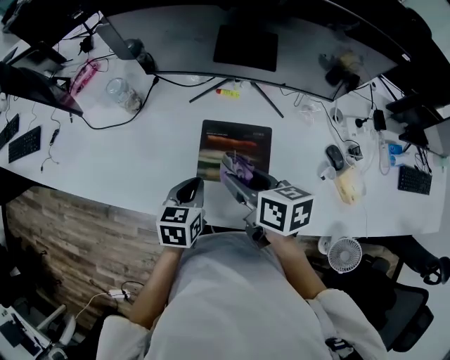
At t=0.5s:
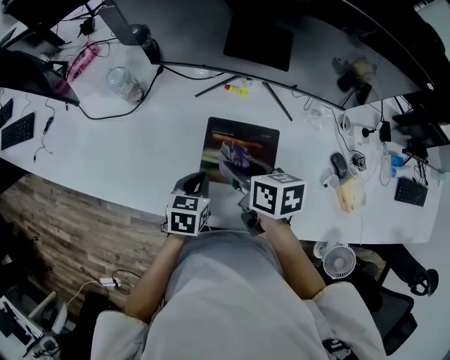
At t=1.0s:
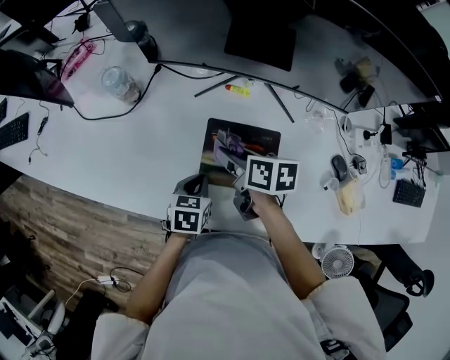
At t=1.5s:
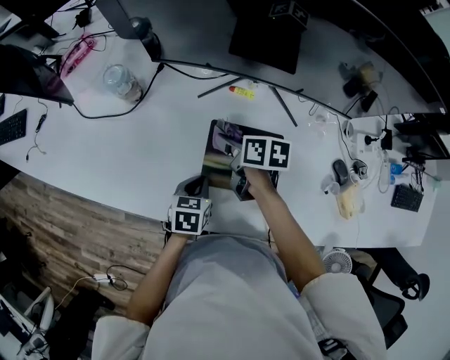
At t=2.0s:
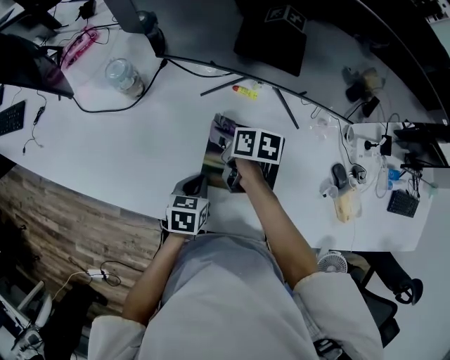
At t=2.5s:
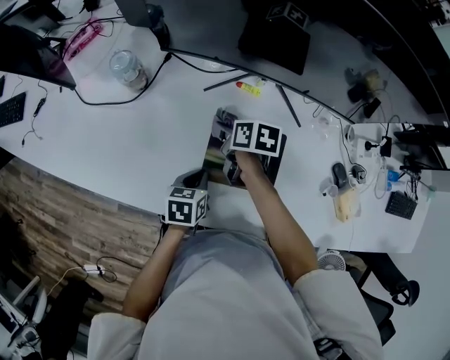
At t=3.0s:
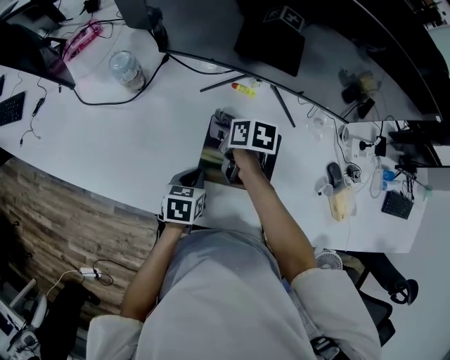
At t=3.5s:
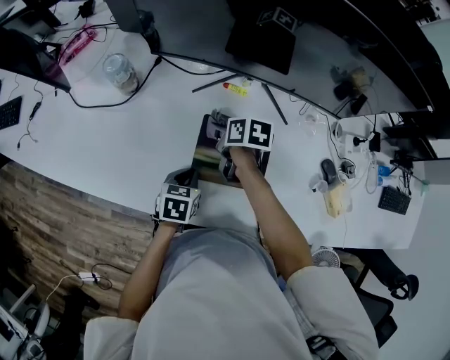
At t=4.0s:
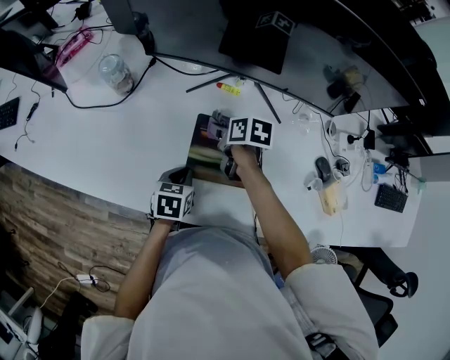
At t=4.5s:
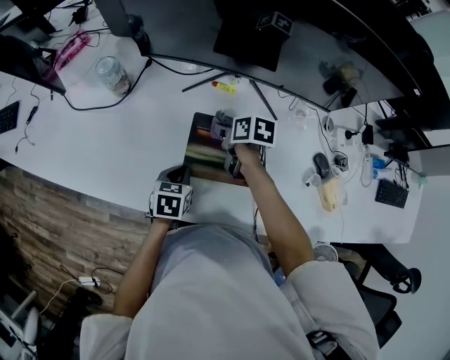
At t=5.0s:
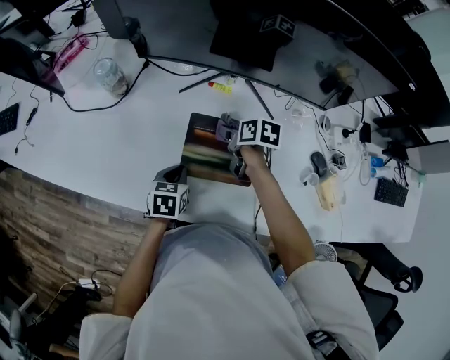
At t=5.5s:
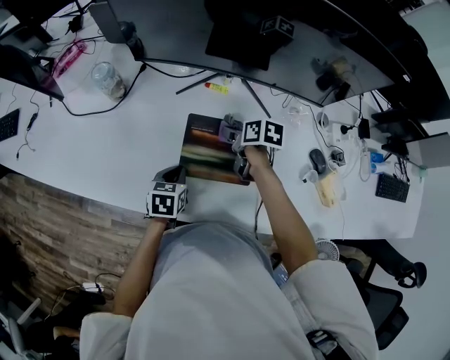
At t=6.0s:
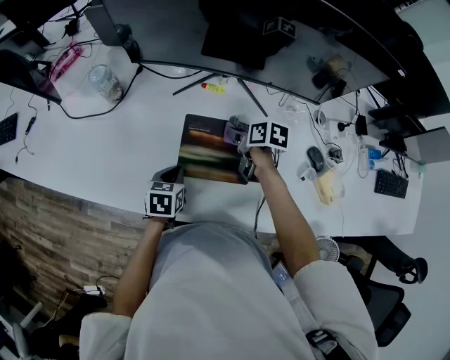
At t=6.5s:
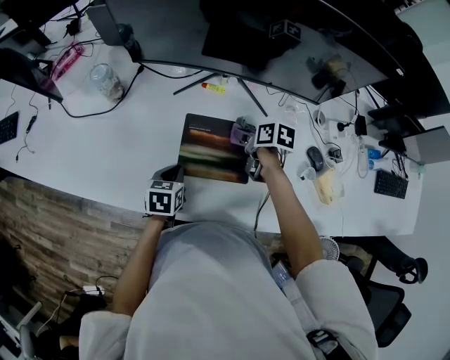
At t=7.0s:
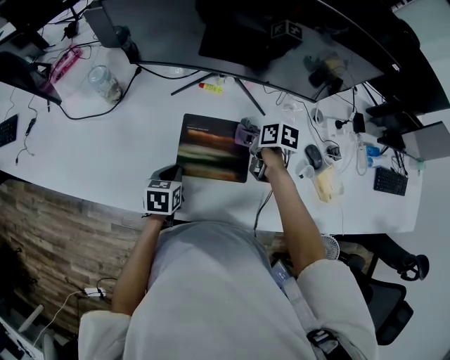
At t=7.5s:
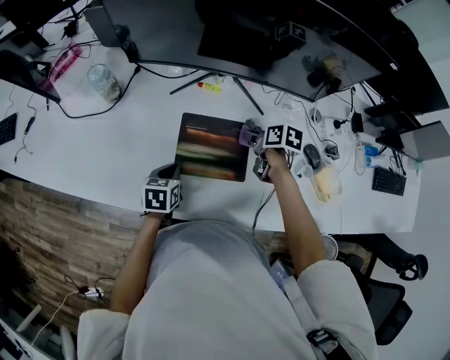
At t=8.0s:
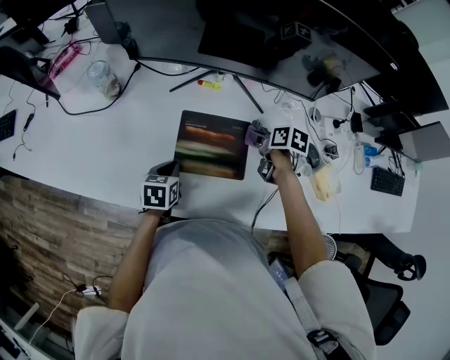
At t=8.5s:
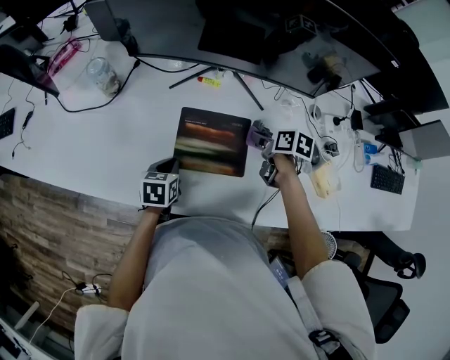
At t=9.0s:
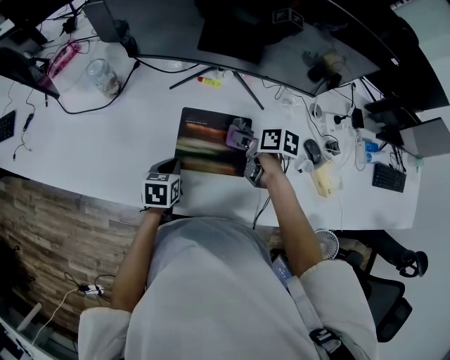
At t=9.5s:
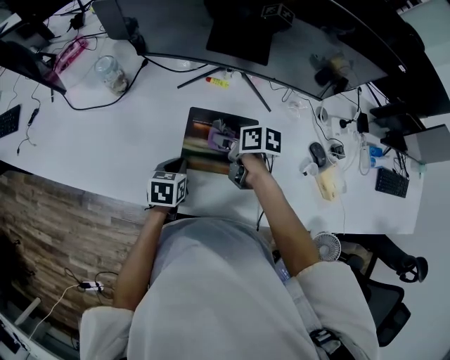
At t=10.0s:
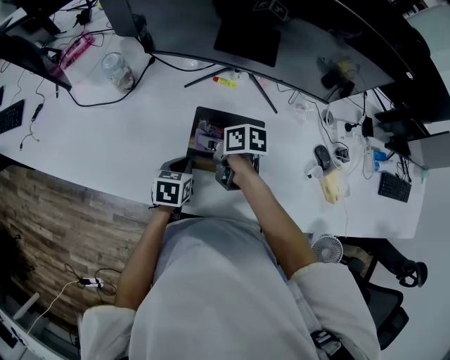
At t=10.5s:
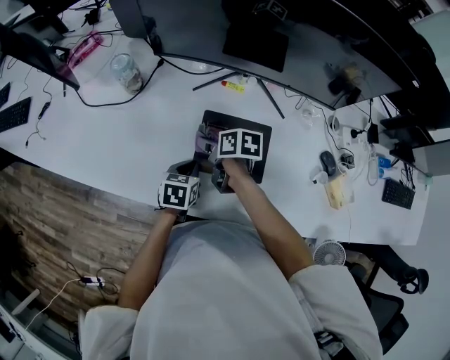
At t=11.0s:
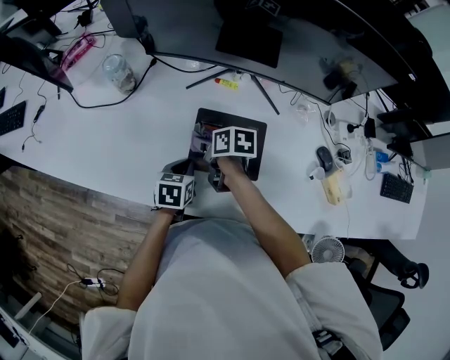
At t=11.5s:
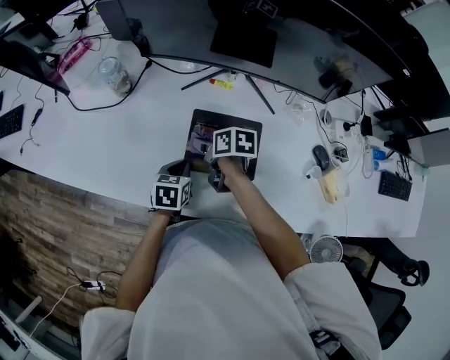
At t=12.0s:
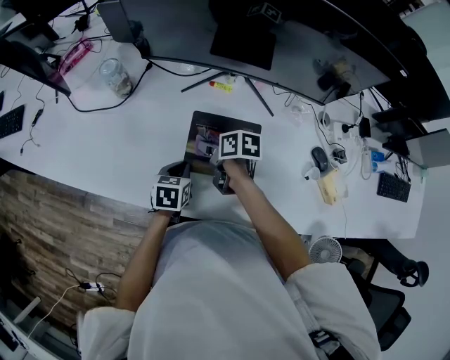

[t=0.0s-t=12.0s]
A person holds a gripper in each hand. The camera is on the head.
t=0.0s to t=2.0s: The right gripper goes some 20 cm downward and forward, while the left gripper goes approximately 10 cm downward.
t=2.0s to t=4.0s: The grippers make only small movements.
t=4.0s to t=6.0s: The right gripper heads to the right, covering approximately 10 cm.
t=6.0s to t=8.0s: The right gripper goes approximately 10 cm to the right.
t=8.0s to t=10.0s: The right gripper shifts approximately 20 cm to the left, and swivels roughly 20 degrees.
t=10.0s to t=12.0s: The grippers stay close to where they were, moving slightly.

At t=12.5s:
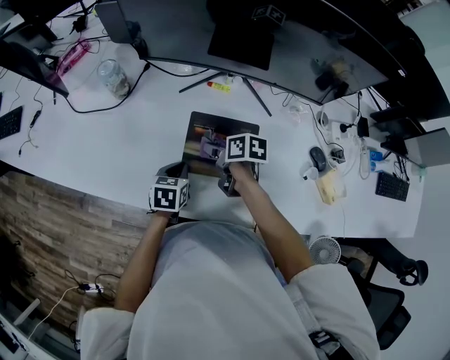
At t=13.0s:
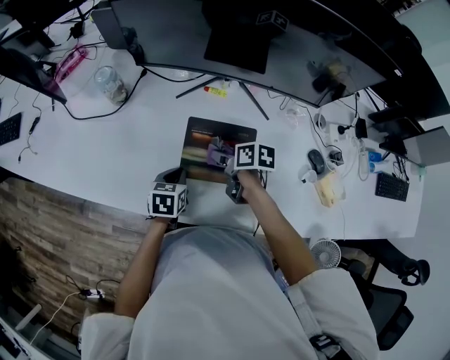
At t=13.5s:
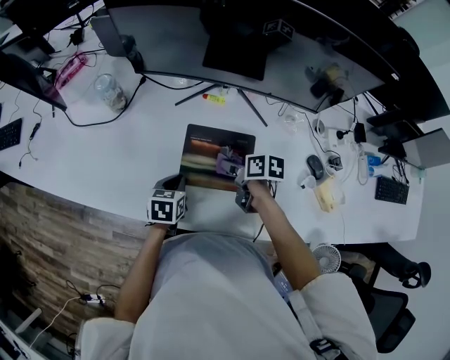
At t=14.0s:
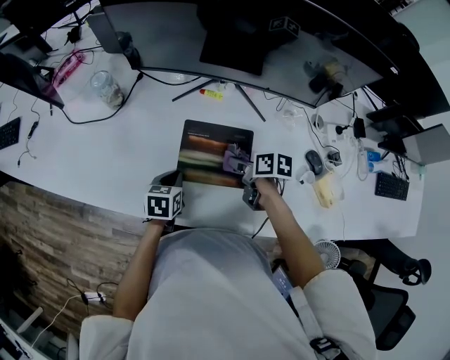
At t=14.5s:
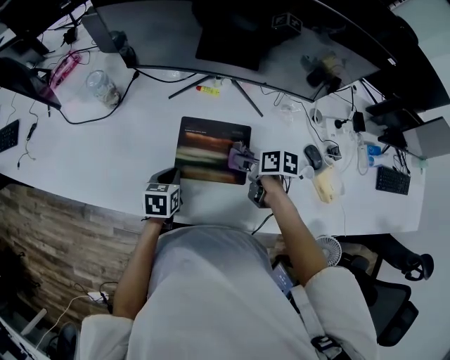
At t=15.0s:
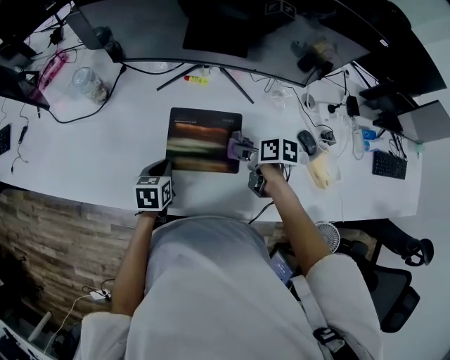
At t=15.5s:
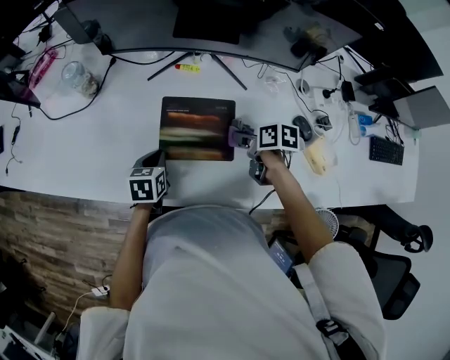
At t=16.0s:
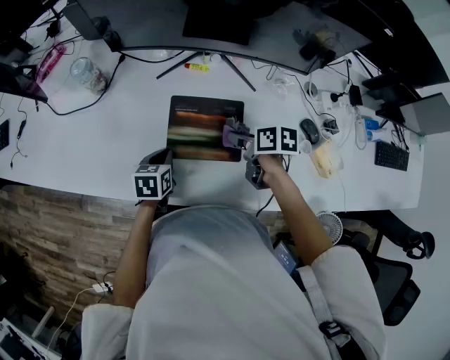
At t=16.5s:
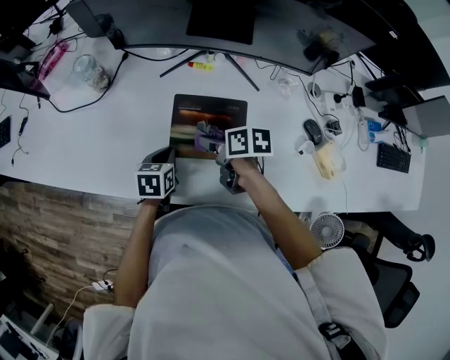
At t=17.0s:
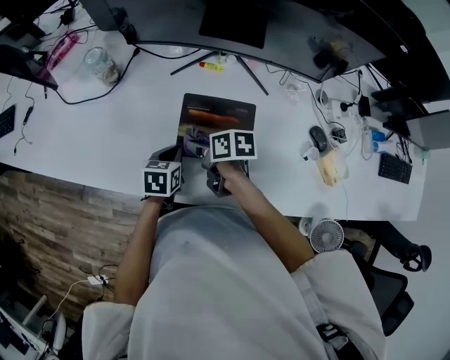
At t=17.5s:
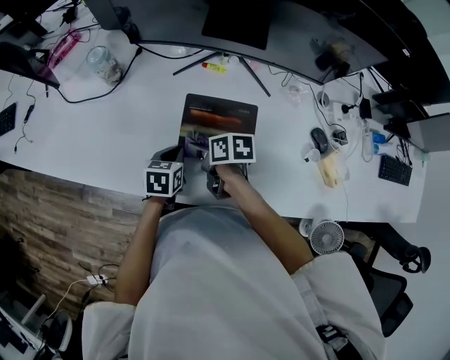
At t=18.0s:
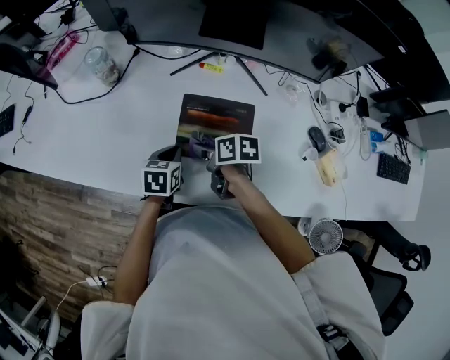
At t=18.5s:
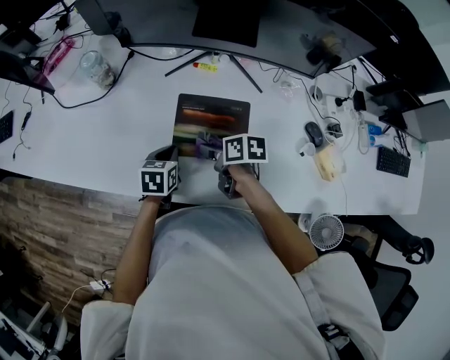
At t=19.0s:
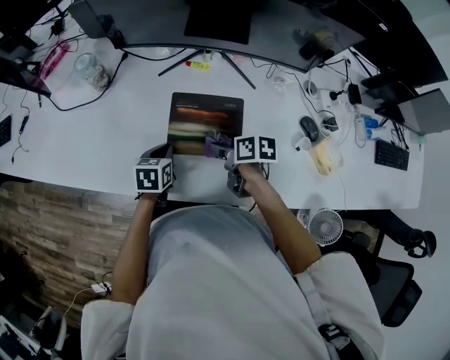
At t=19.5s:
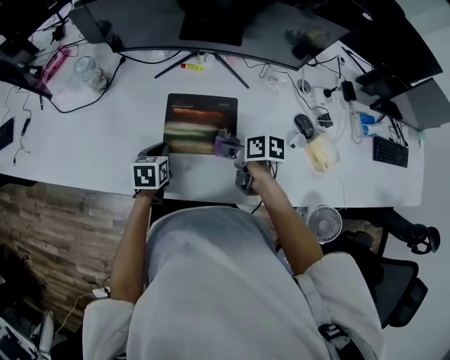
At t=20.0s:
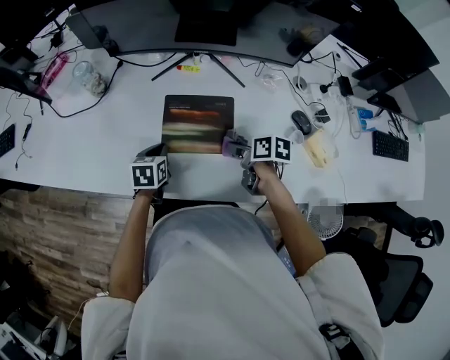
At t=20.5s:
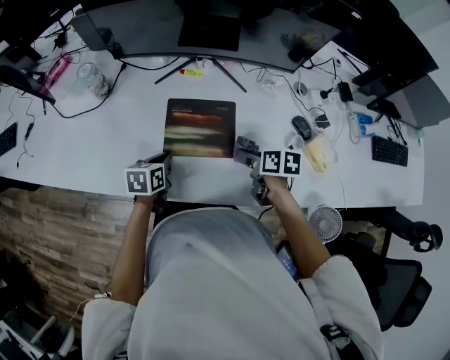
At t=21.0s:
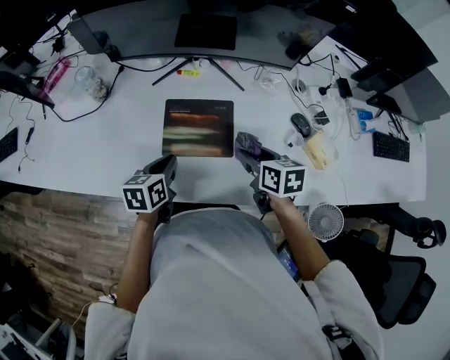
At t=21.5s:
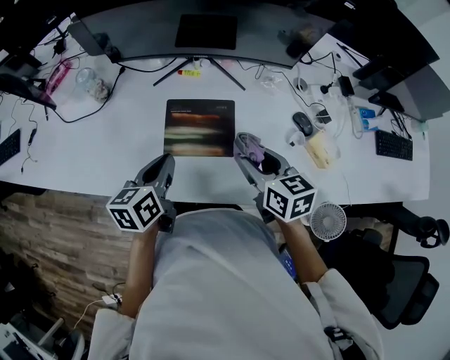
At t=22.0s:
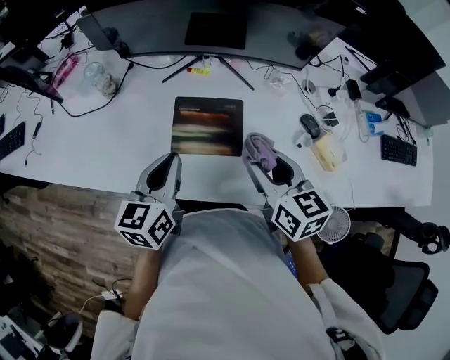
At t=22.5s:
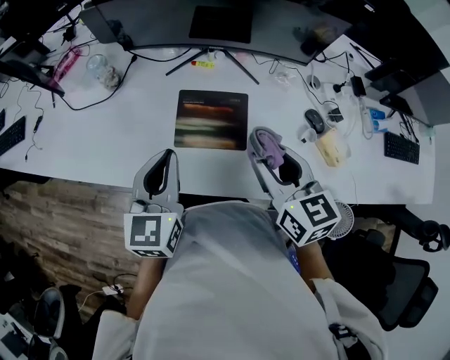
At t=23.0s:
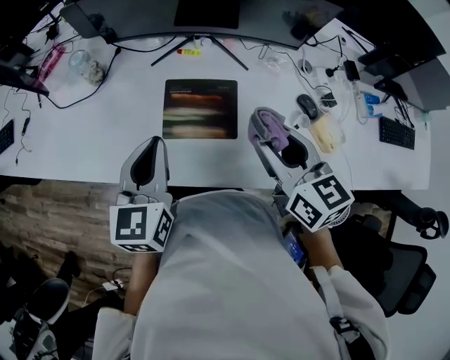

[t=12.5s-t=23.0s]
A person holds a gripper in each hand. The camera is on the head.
t=12.5s to t=14.5s: The right gripper heads to the right and backward, covering some 10 cm.
t=14.5s to t=16.5s: The right gripper moves to the left, roughly 10 cm.
t=16.5s to t=19.0s: The right gripper moves some 5 cm to the left and comes back.
t=19.0s to t=21.0s: The right gripper moves to the right and upward, some 15 cm, and rotates some 30 degrees; the left gripper goes some 10 cm upward.
t=21.0s to t=23.0s: The two grippers go approximately 15 cm upward. The right gripper swivels roughly 30 degrees, while the left gripper rotates about 30 degrees.

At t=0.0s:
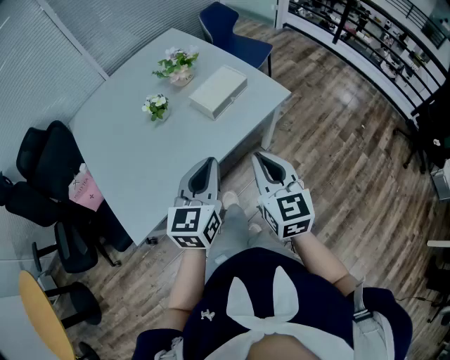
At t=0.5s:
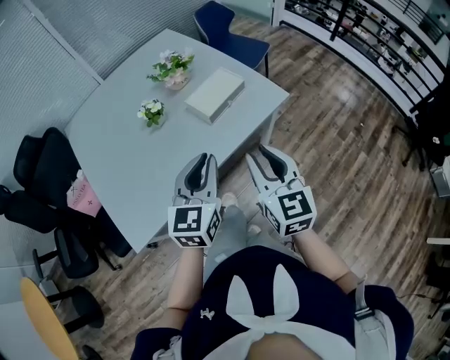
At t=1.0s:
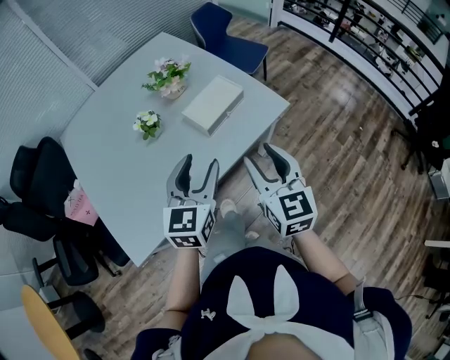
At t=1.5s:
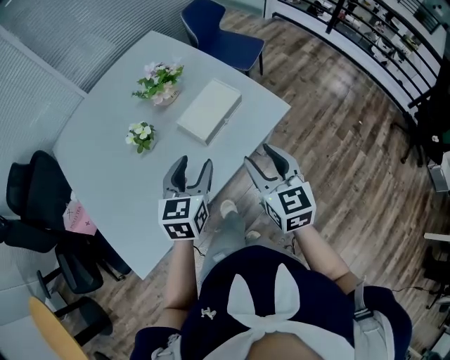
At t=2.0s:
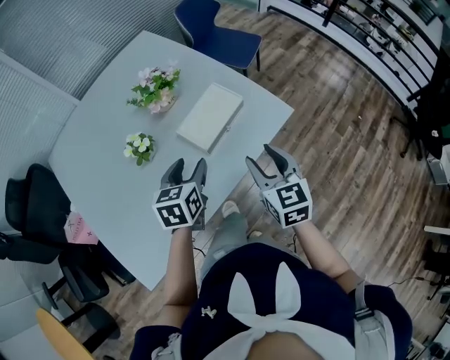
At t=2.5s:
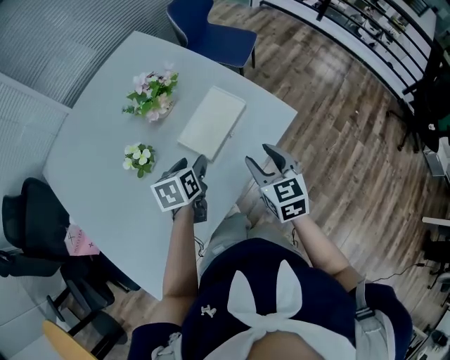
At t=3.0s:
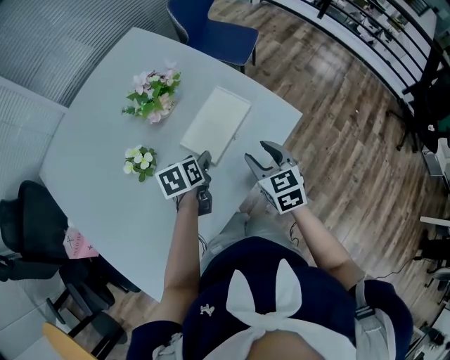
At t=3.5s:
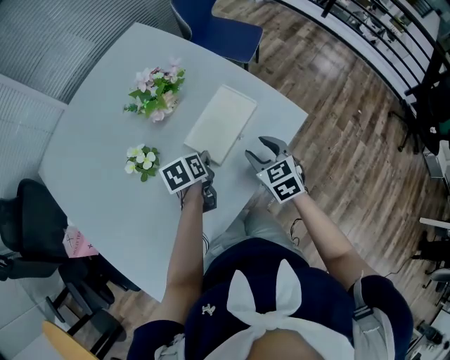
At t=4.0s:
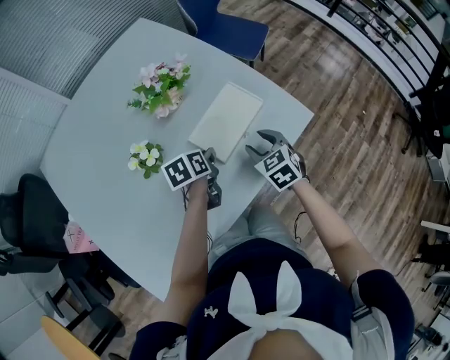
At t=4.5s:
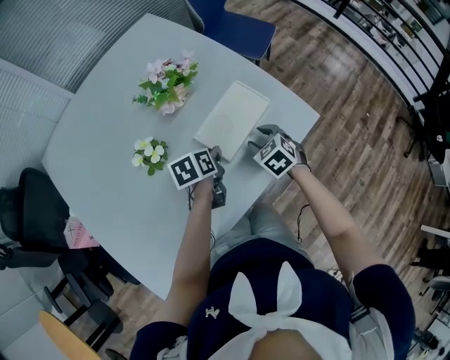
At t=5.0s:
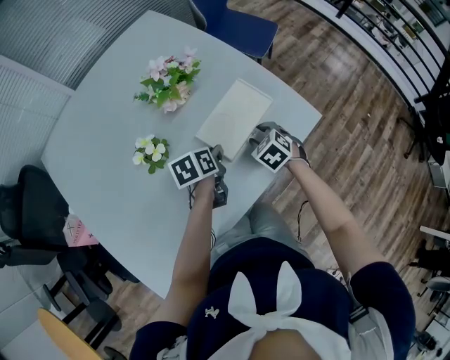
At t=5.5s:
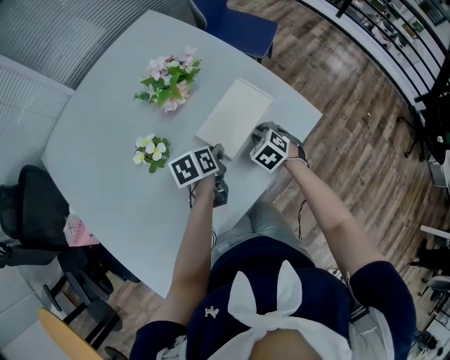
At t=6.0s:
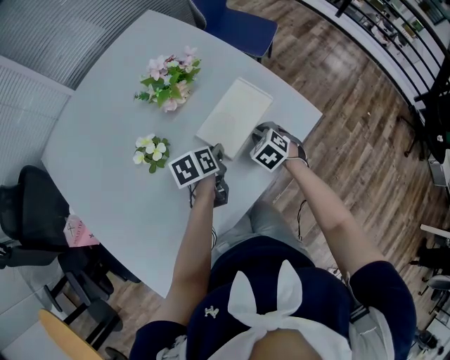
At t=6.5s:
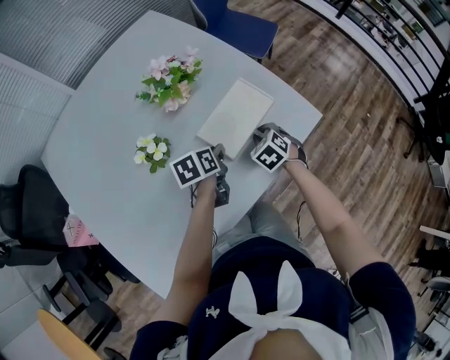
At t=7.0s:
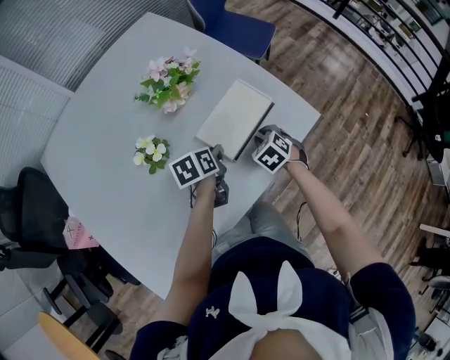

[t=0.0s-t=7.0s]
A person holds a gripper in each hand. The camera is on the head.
t=0.0s to t=2.0s: The left gripper travels forward and downward by approximately 25 cm, swivels some 30 degrees, and opens up, while the right gripper goes some 20 cm forward, and opens its fingers.
t=2.0s to t=3.5s: The grippers both shift downward and forward by some 15 cm. The left gripper rotates some 30 degrees, and closes up.
t=3.5s to t=5.0s: The right gripper travels downward by some 10 cm, and changes its angle by some 30 degrees.
t=5.0s to t=7.0s: The right gripper closes.
